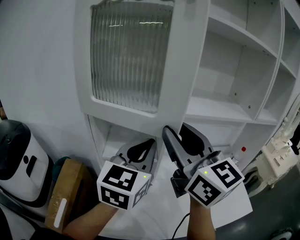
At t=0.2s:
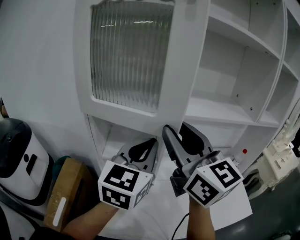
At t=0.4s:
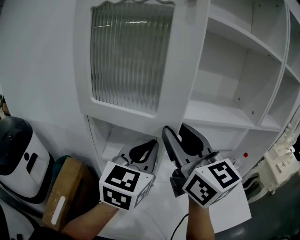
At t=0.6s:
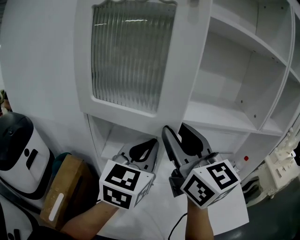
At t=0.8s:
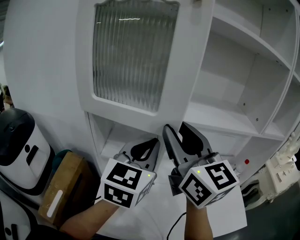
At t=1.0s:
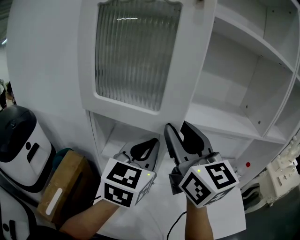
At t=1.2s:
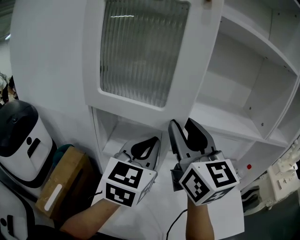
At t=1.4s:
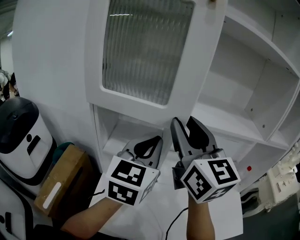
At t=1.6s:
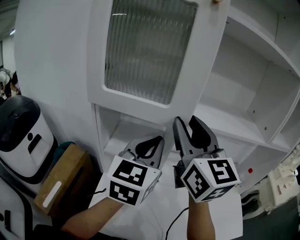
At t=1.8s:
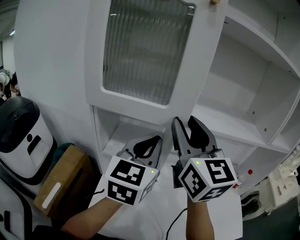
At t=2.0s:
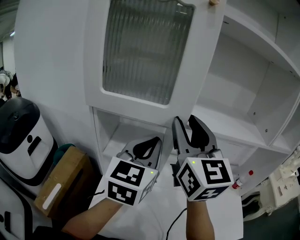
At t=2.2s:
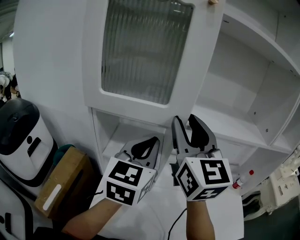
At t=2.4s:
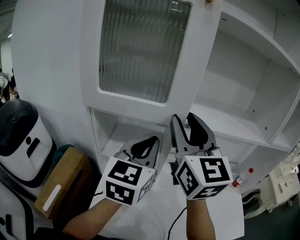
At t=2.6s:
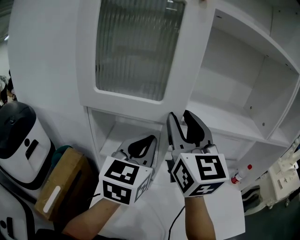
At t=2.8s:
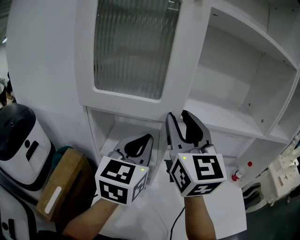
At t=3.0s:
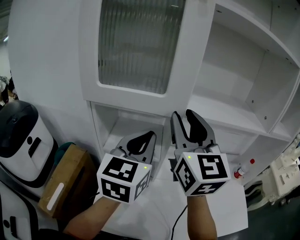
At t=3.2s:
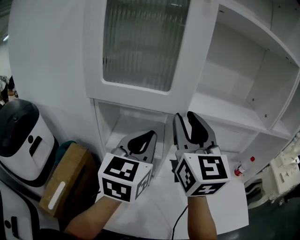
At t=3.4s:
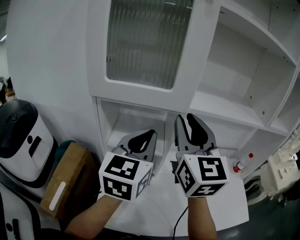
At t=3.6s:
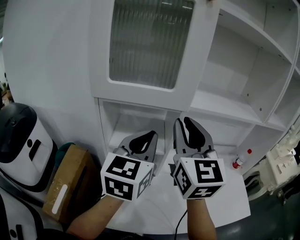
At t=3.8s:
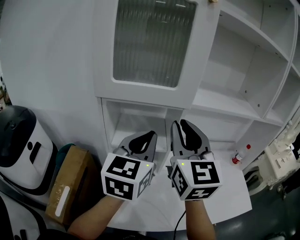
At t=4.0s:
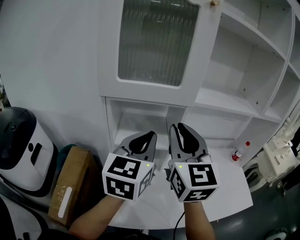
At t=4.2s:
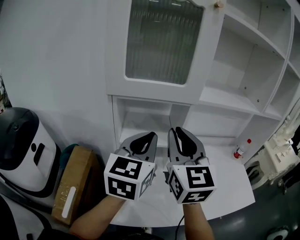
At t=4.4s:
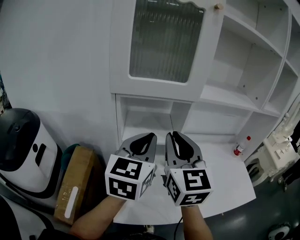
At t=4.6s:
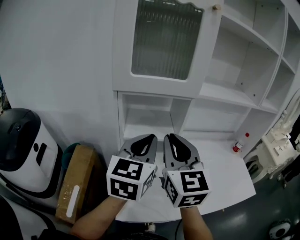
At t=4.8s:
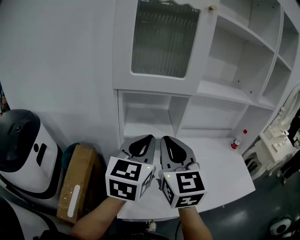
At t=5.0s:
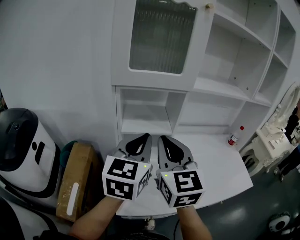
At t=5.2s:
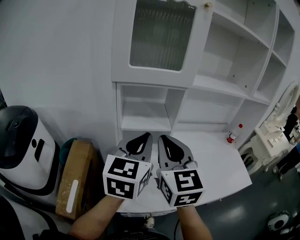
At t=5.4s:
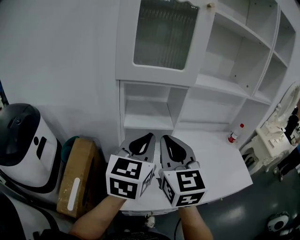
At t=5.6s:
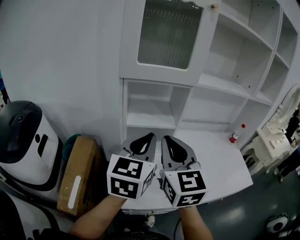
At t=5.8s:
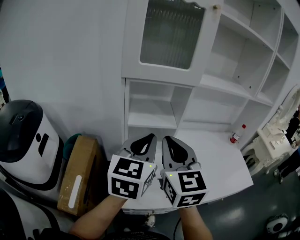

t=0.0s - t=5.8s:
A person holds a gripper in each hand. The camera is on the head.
t=0.0s - t=1.4s: The right gripper is displaced forward by approximately 5 cm.
t=1.4s - t=2.8s: The grippers move only a little.
t=2.8s - t=4.4s: The left gripper heads backward and to the left, covering about 10 cm. Meanwhile the right gripper goes roughly 15 cm backward, downward and to the left, and closes.
t=4.4s - t=5.8s: Both grippers move backward, some 10 cm.

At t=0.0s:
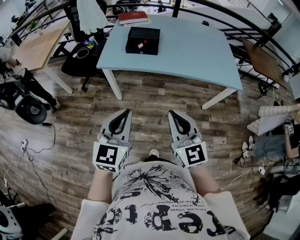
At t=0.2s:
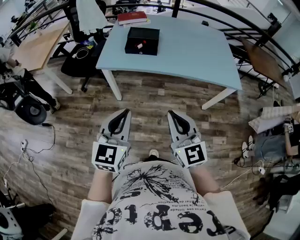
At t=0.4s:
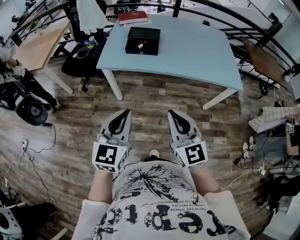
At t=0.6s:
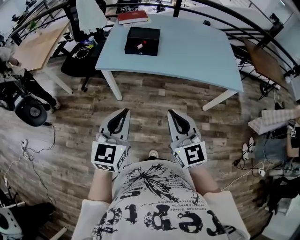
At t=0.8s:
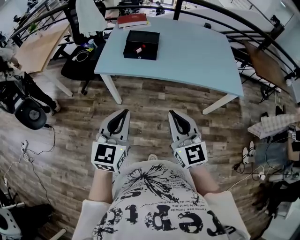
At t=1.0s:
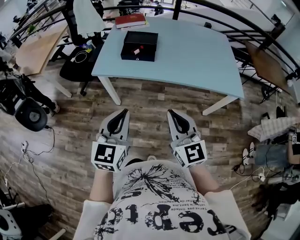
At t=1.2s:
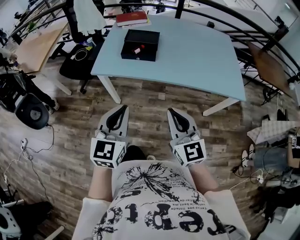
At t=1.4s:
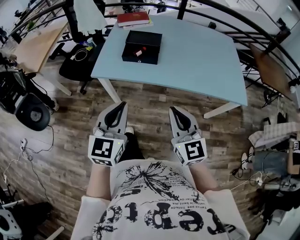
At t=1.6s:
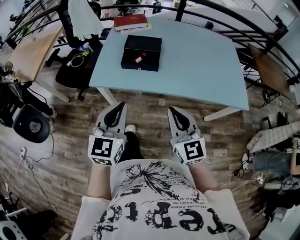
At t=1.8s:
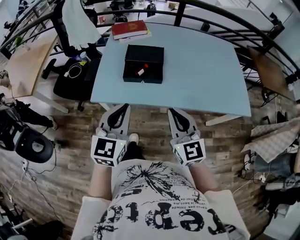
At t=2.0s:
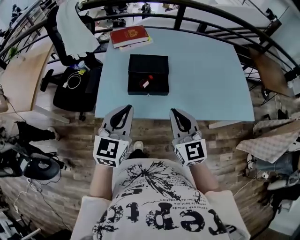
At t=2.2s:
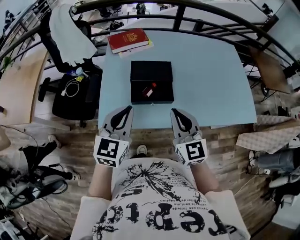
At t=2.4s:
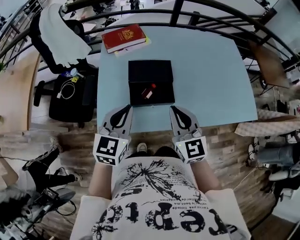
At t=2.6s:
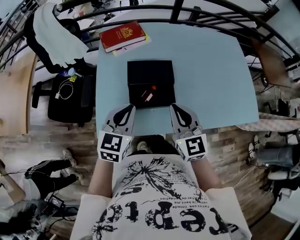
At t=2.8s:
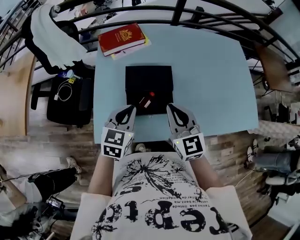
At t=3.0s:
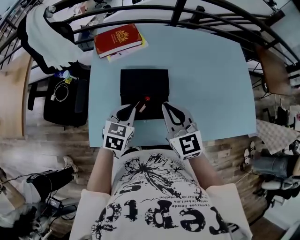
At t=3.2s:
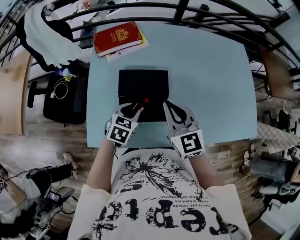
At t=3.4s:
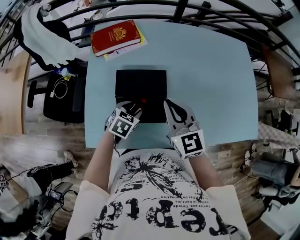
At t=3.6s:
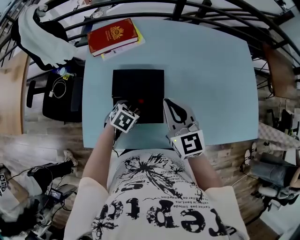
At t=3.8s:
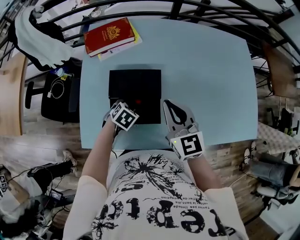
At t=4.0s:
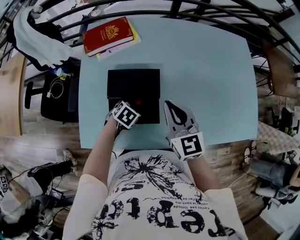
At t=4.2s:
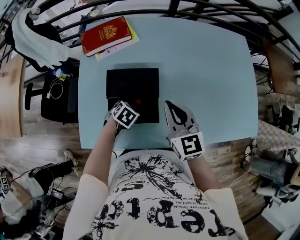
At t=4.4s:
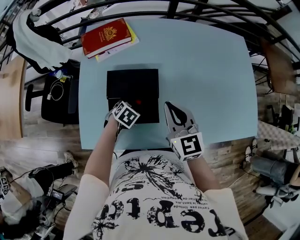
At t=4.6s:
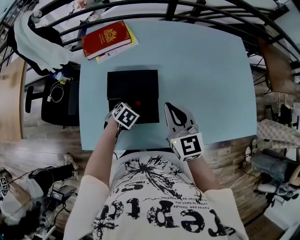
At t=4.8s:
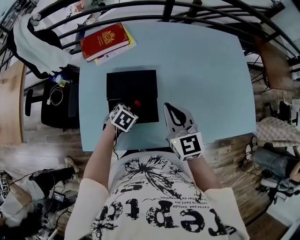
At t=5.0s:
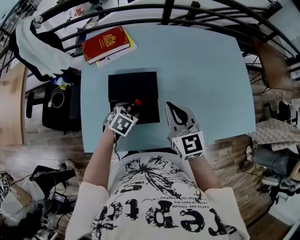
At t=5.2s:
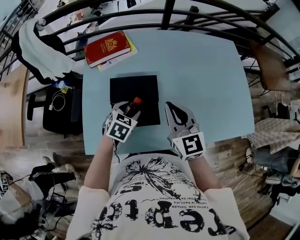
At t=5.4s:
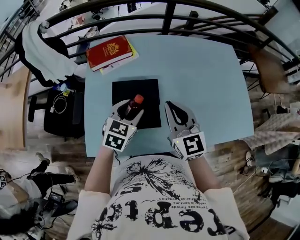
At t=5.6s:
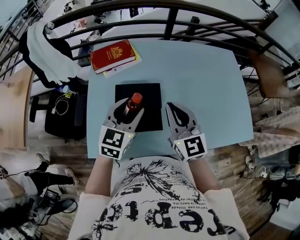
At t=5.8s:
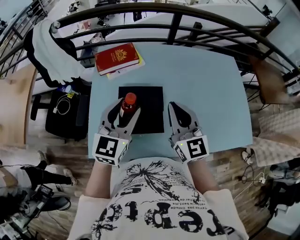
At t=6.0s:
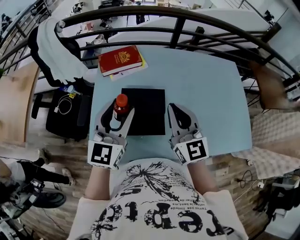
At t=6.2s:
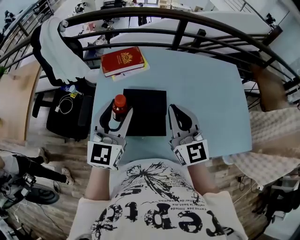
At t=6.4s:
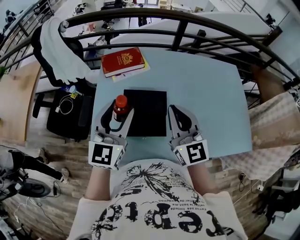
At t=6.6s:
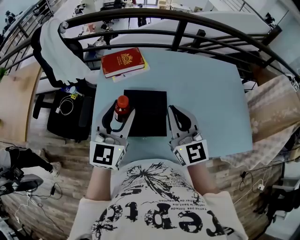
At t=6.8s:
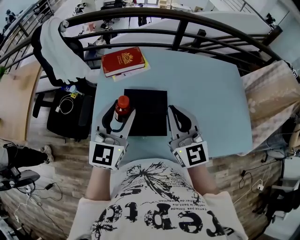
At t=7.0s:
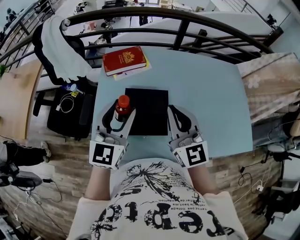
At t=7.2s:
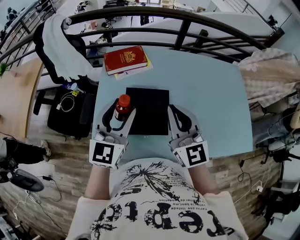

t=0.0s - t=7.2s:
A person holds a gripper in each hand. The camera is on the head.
t=0.0s - t=1.4s: Both grippers move forward, approximately 15 cm.
t=1.4s - t=2.8s: The two grippers travel together, forward, about 40 cm. The left gripper turns by about 30 degrees.
t=2.8s - t=4.4s: The right gripper goes about 10 cm forward and to the right. Meanwhile the left gripper shifts some 20 cm downward, points its fingers roughly 40 degrees further downward, and opens.
t=4.4s - t=5.8s: The right gripper is displaced upward by about 10 cm. The left gripper goes approximately 35 cm upward, and points its fingers approximately 60 degrees further upward.
t=5.8s - t=7.2s: The left gripper ends up some 5 cm from where it was. Meanwhile the right gripper shifts by about 5 cm.

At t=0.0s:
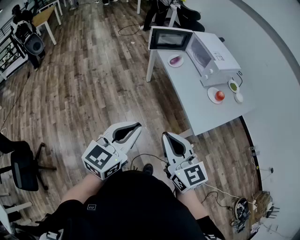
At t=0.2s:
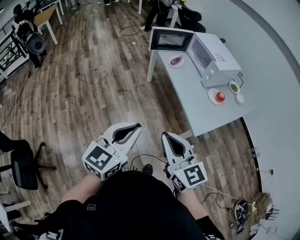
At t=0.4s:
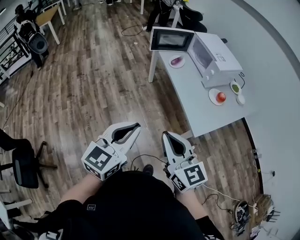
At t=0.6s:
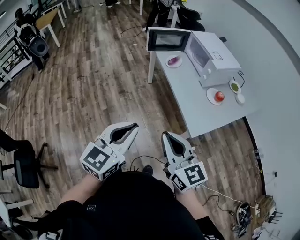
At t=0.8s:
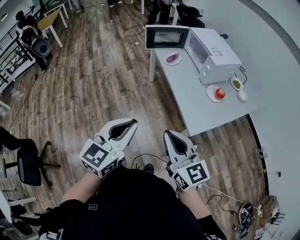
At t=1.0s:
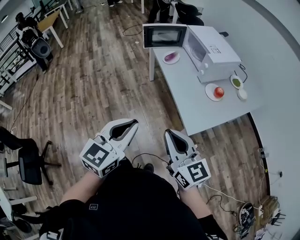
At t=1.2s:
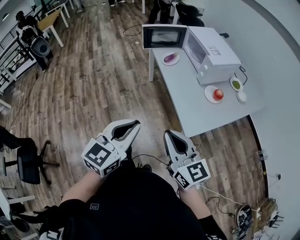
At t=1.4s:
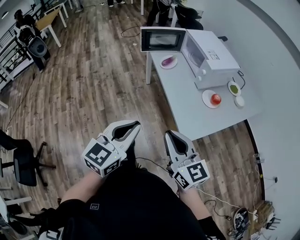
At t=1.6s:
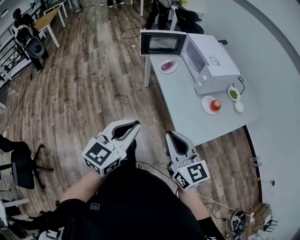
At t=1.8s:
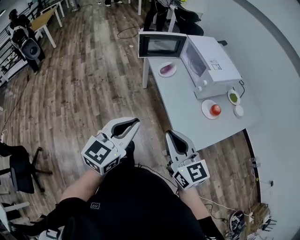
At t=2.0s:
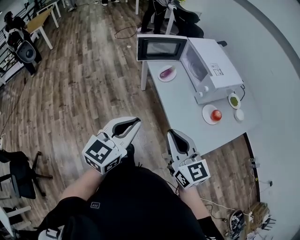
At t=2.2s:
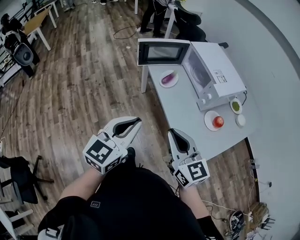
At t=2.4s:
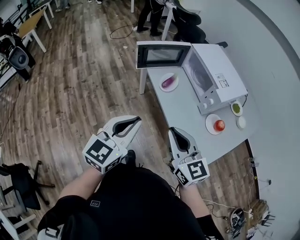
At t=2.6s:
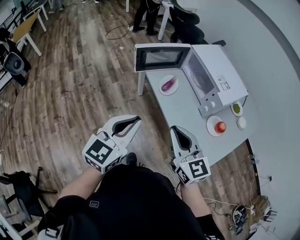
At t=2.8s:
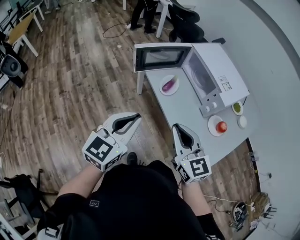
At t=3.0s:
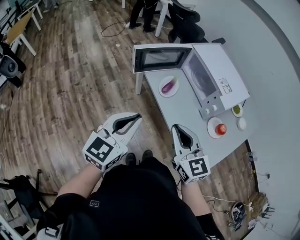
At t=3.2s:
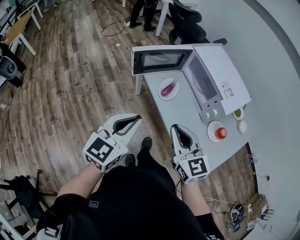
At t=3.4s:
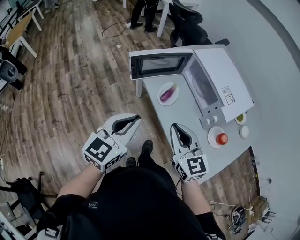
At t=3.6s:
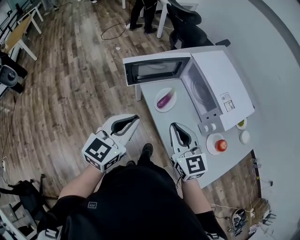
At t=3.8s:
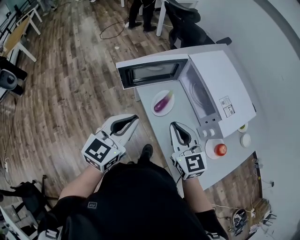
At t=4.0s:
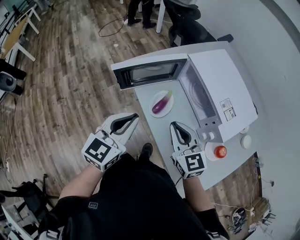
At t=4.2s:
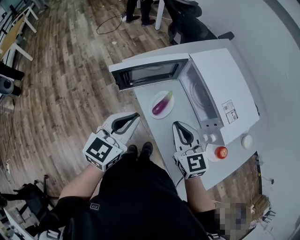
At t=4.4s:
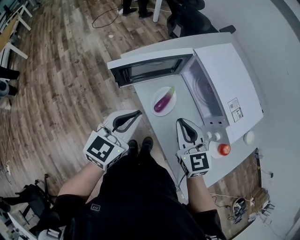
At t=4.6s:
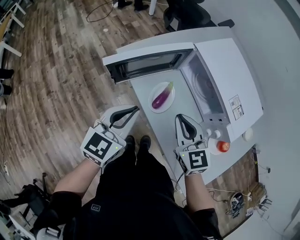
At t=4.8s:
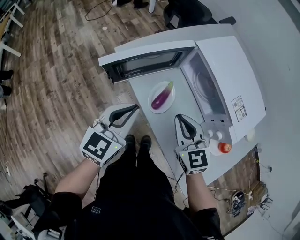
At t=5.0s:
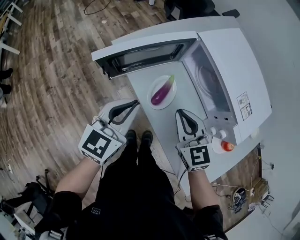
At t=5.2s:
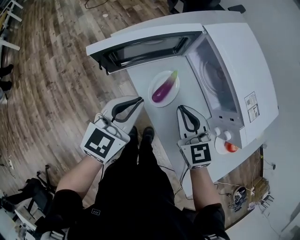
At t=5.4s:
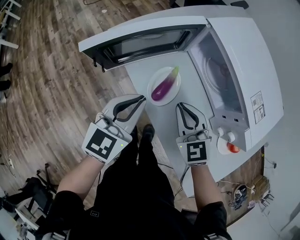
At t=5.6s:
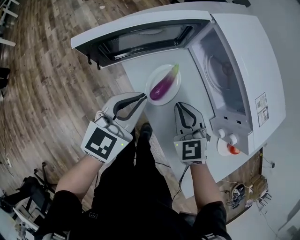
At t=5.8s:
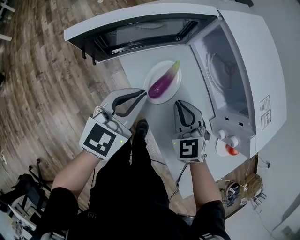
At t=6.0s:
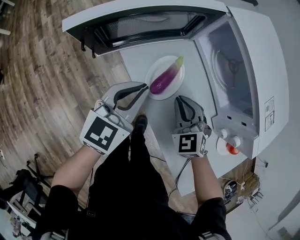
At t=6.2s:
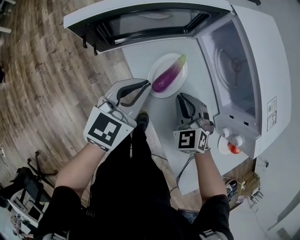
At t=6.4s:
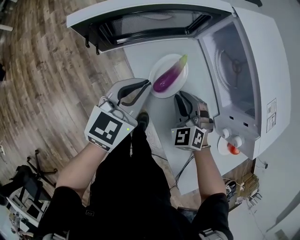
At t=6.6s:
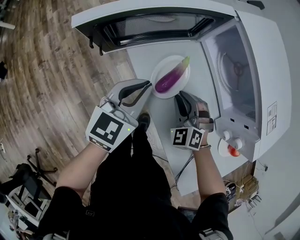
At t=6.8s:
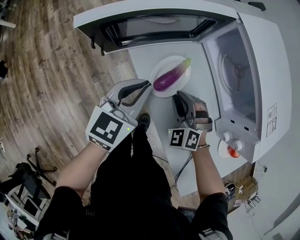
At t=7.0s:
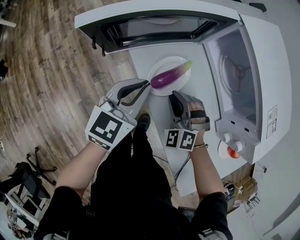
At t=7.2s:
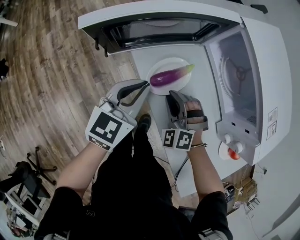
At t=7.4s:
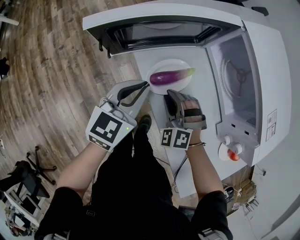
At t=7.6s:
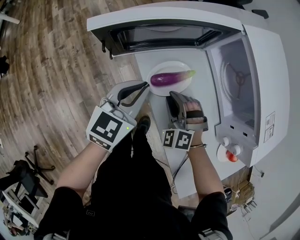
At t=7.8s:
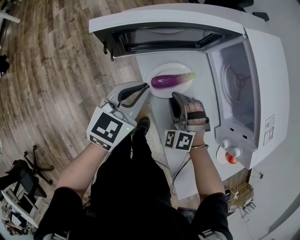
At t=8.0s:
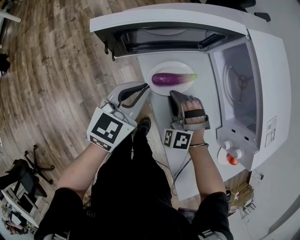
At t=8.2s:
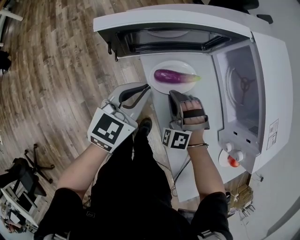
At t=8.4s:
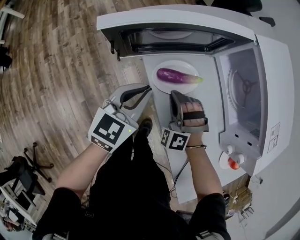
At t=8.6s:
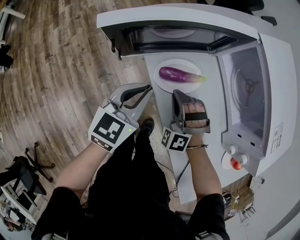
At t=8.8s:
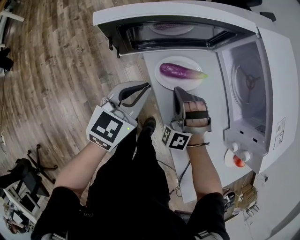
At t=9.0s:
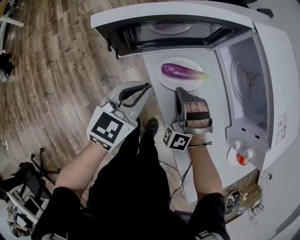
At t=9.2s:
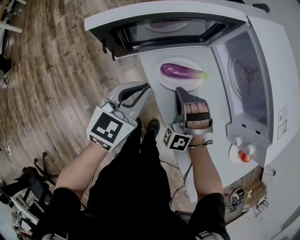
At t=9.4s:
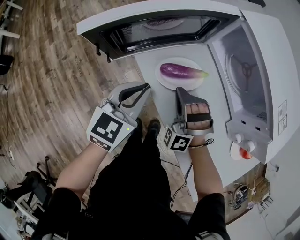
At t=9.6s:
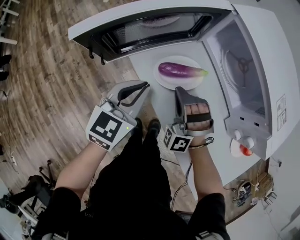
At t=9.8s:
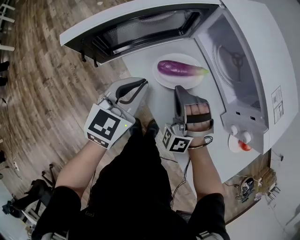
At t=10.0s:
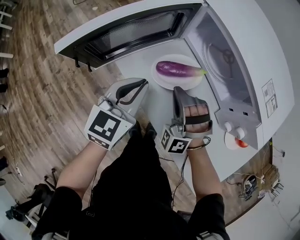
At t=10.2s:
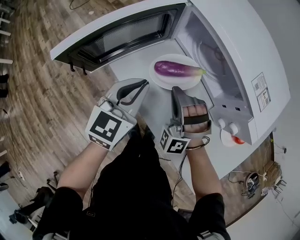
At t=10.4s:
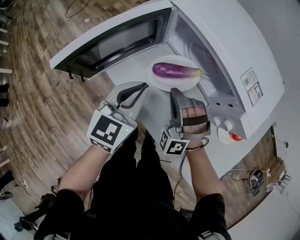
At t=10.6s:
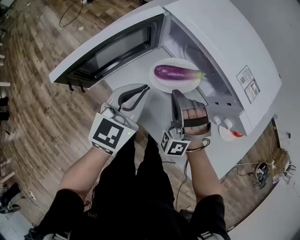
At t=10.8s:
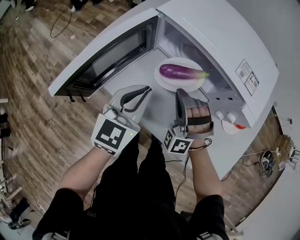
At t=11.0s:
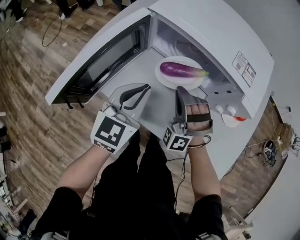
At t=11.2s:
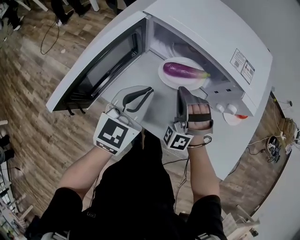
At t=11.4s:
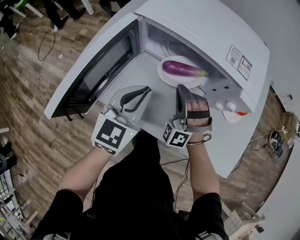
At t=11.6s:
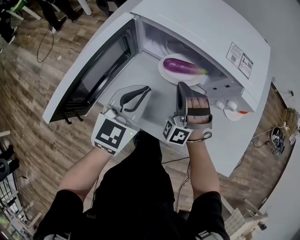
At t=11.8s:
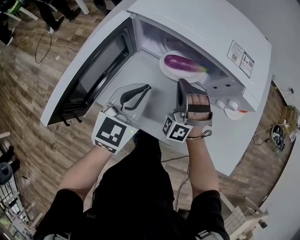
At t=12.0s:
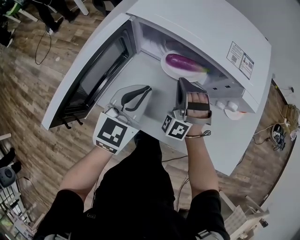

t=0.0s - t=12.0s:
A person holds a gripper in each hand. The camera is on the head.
t=0.0s - t=1.6s: The two grippers go approximately 15 cm to the right and forward.
t=1.6s - t=3.0s: The right gripper travels forward by about 25 cm. Meanwhile the left gripper is displaced forward and to the left by approximately 30 cm.
t=3.0s - t=4.4s: Both grippers move forward, roughly 20 cm.
t=4.4s - t=6.0s: The right gripper goes some 20 cm downward, and turns by about 30 degrees. The left gripper heads downward and forward, covering about 15 cm.
t=6.0s - t=7.6s: The right gripper shifts some 5 cm to the left, and rotates about 30 degrees.
t=7.6s - t=9.0s: The right gripper turns by about 20 degrees.
t=9.0s - t=10.4s: Both grippers travel together to the right and upward, approximately 15 cm.
t=10.4s - t=12.0s: The right gripper shifts by roughly 10 cm, and turns by approximately 30 degrees. The left gripper changes place by some 5 cm, and swivels about 20 degrees.
